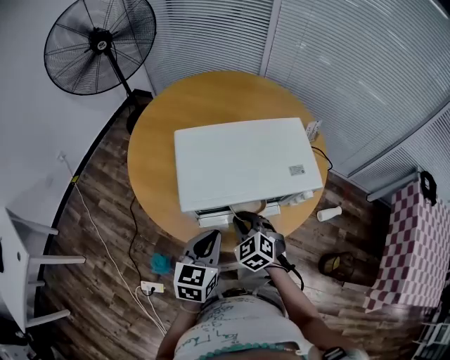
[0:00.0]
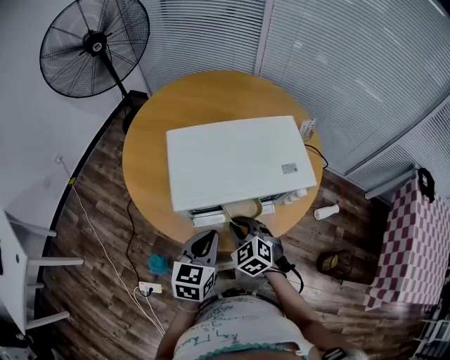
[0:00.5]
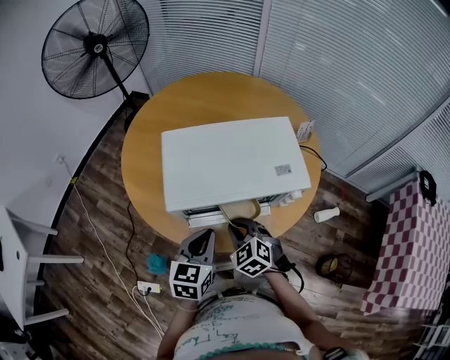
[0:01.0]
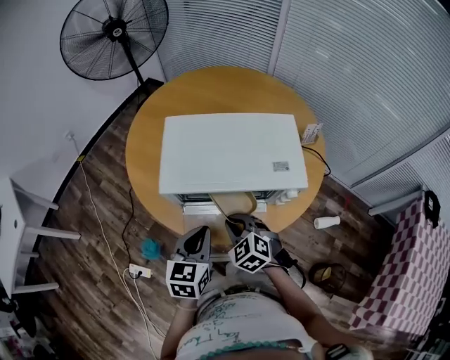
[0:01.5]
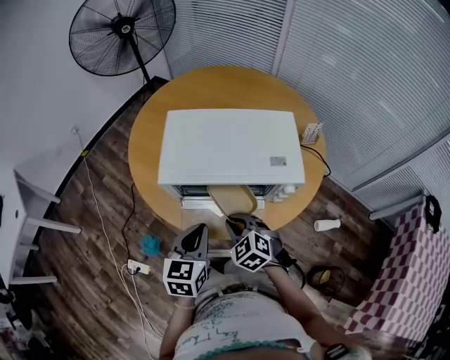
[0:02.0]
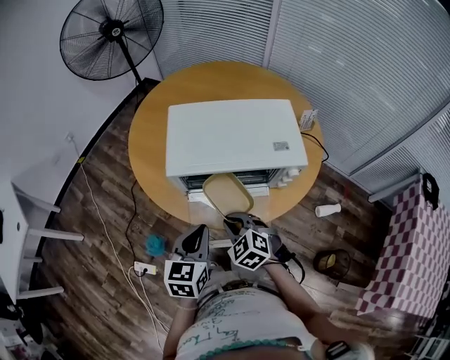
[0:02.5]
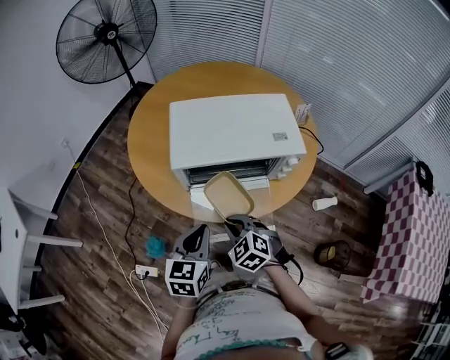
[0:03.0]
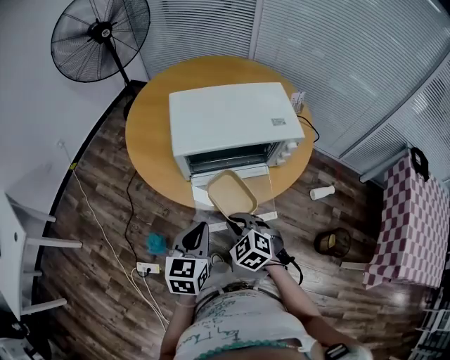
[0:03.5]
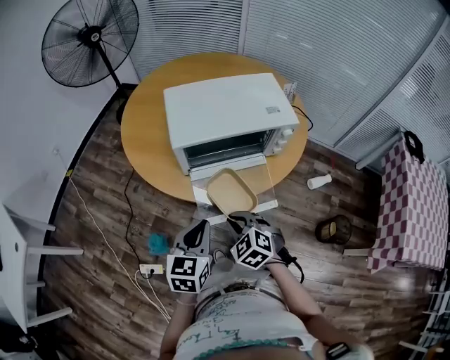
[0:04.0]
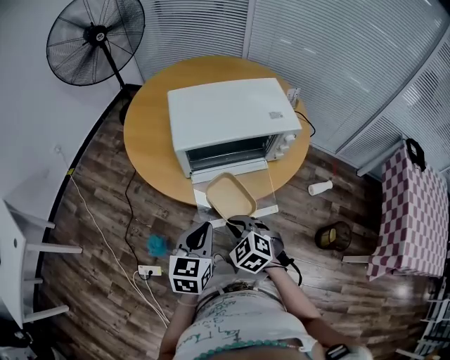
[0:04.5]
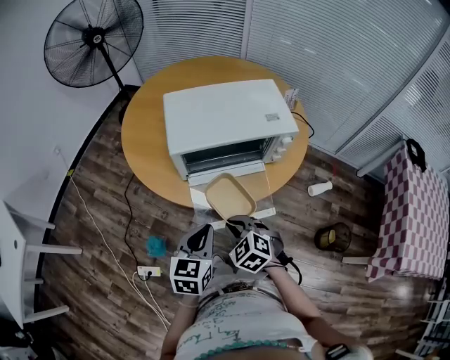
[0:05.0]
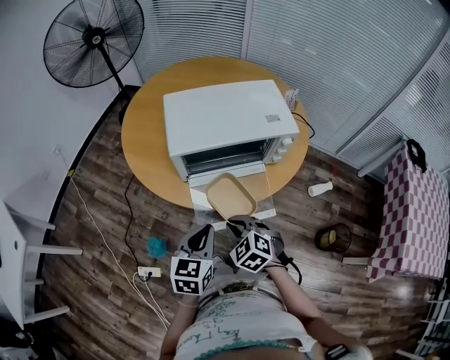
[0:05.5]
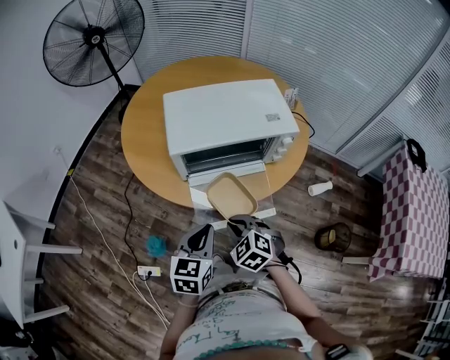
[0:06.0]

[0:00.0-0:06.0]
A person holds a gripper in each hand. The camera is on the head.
0:00.0 to 0:02.0: The right gripper moves backward, roughly 5 cm, while the left gripper ends up about 5 cm from where it was.
0:02.0 to 0:04.0: The two grippers go approximately 15 cm backward and to the left.
0:04.0 to 0:06.0: The grippers stay close to where they were, moving slightly.

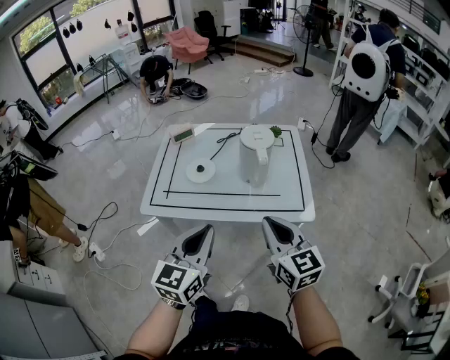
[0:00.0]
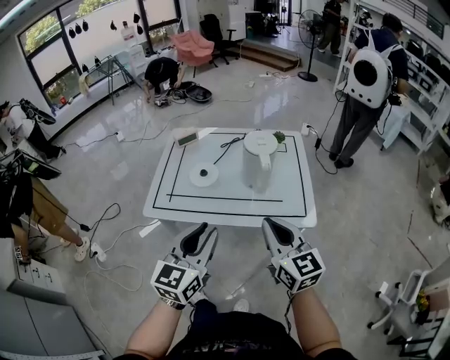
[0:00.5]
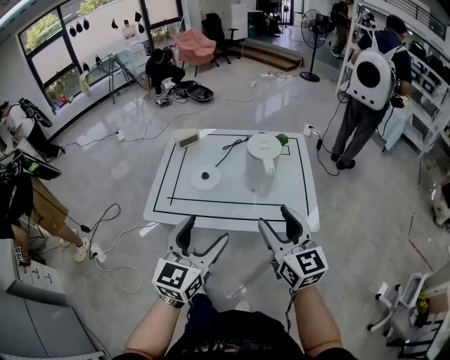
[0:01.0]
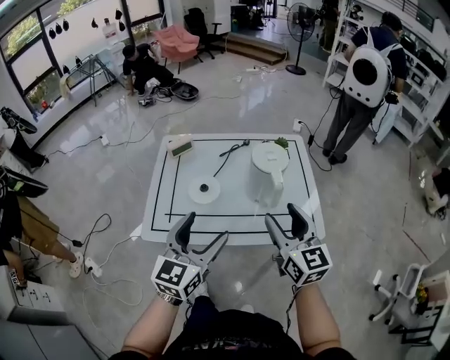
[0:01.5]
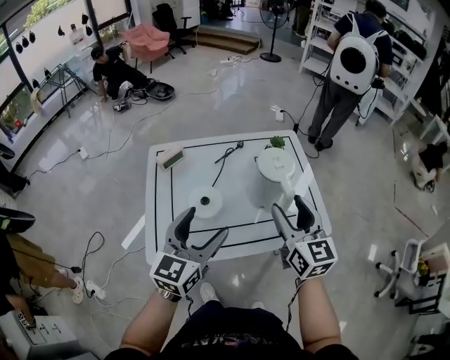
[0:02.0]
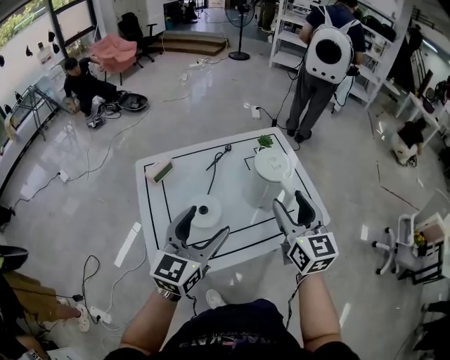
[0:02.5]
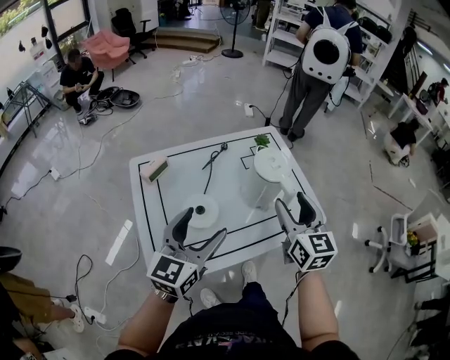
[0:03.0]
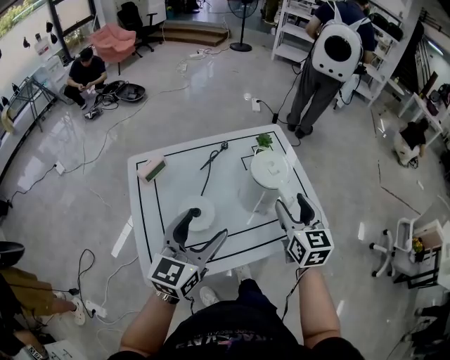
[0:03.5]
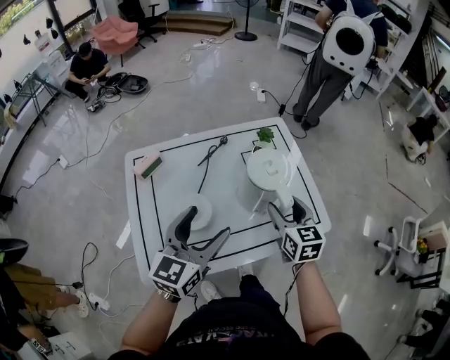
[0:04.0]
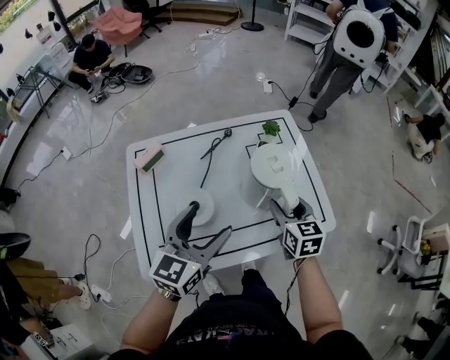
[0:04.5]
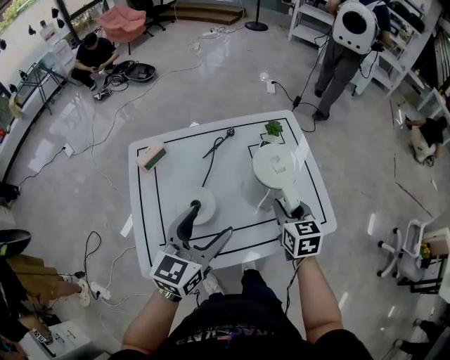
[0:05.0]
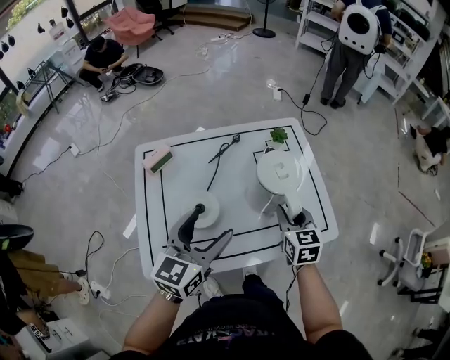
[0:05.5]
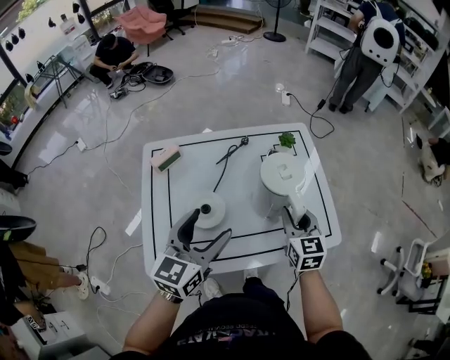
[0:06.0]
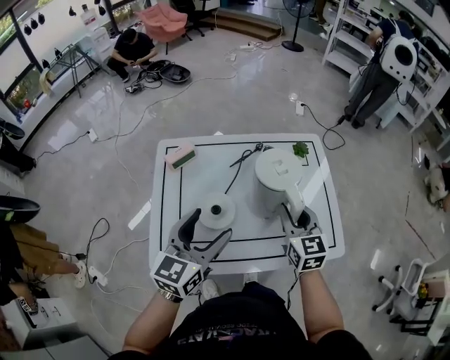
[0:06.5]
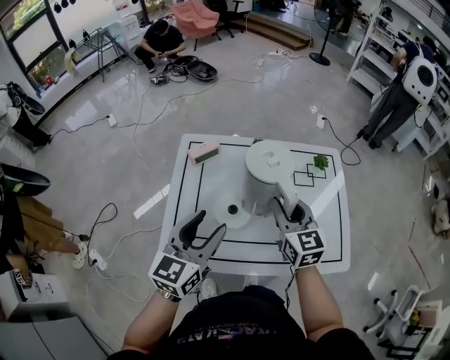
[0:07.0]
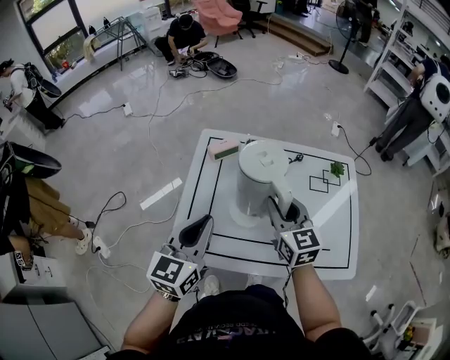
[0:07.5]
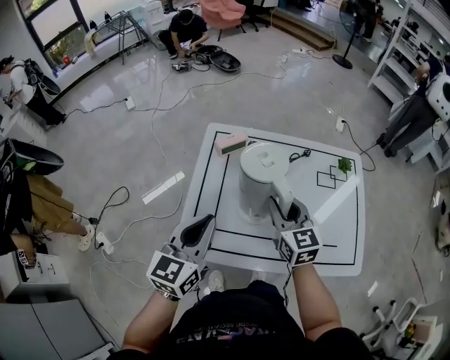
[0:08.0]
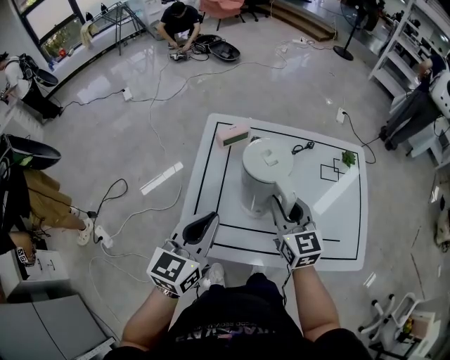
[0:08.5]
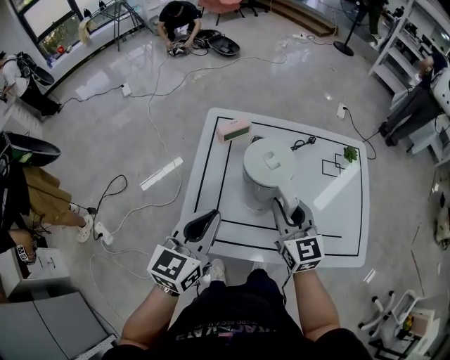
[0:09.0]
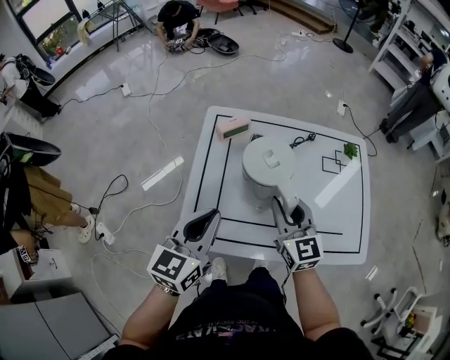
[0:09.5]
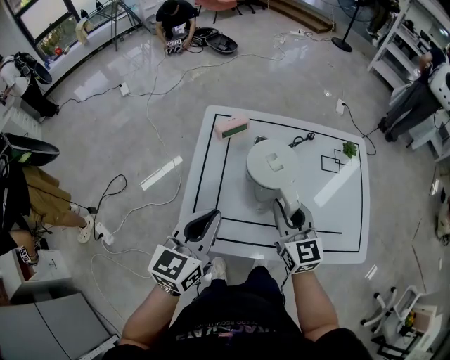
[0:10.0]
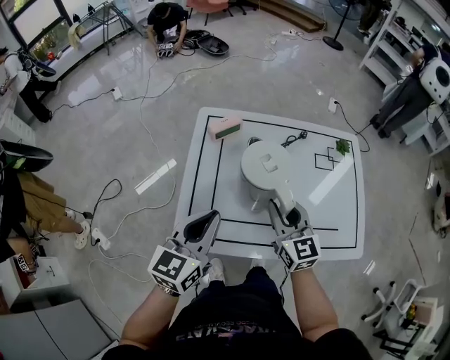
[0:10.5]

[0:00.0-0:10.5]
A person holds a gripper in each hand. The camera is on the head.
0:00.0 to 0:02.0: The left gripper moves forward and to the left, about 25 cm, and opens; the right gripper shifts some 20 cm forward, changes its angle by roughly 20 degrees, and opens.
0:02.0 to 0:04.0: The right gripper goes roughly 15 cm downward and forward, and turns by approximately 20 degrees. The left gripper is displaced forward by some 10 cm.
0:04.0 to 0:06.5: The grippers both shift to the left by approximately 5 cm. The right gripper closes.
0:06.5 to 0:08.5: Both grippers move to the left, some 15 cm. The left gripper closes.
0:08.5 to 0:10.5: The grippers stay close to where they were, moving slightly.

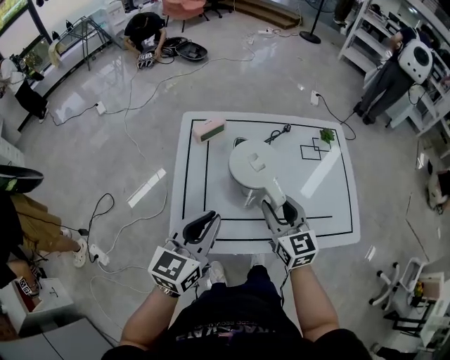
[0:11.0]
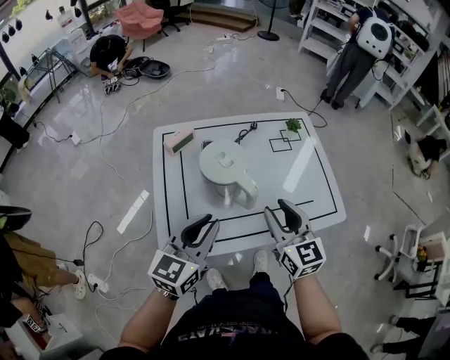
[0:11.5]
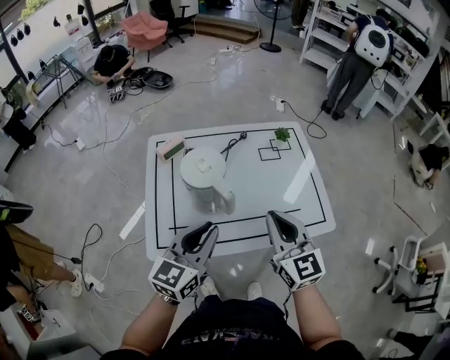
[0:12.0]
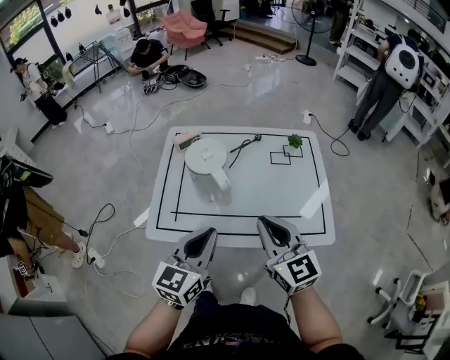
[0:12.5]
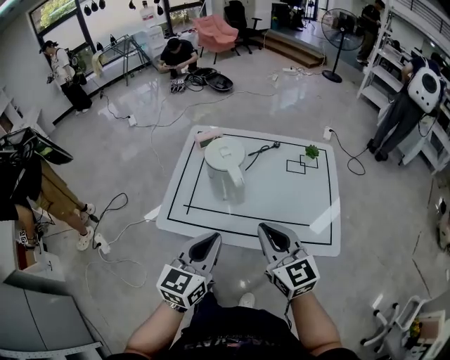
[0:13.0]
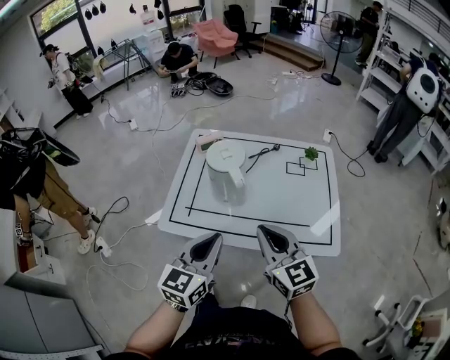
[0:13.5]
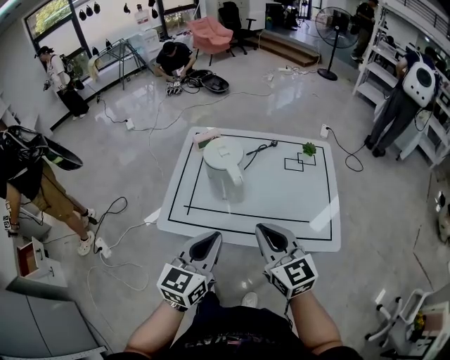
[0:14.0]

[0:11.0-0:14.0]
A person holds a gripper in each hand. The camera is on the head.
0:11.0 to 0:12.5: The right gripper is displaced to the right, backward and upward by approximately 20 cm, and closes. The left gripper travels to the right and backward by about 15 cm.
0:12.5 to 0:14.0: The grippers move only a little.

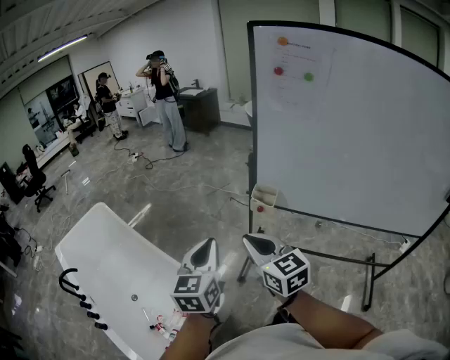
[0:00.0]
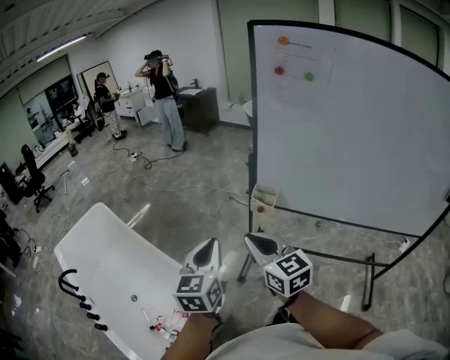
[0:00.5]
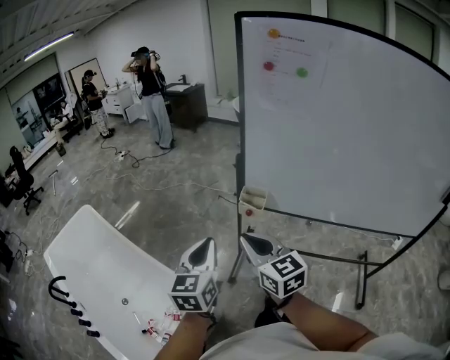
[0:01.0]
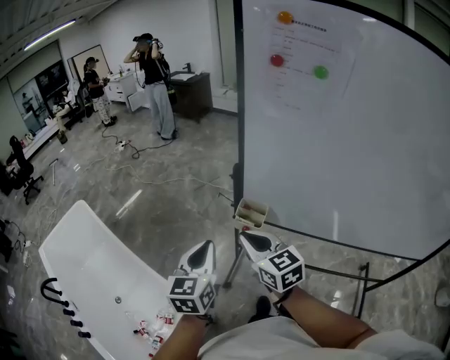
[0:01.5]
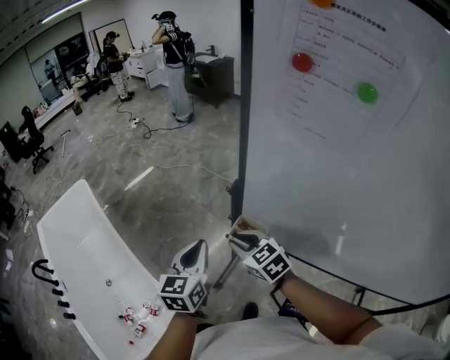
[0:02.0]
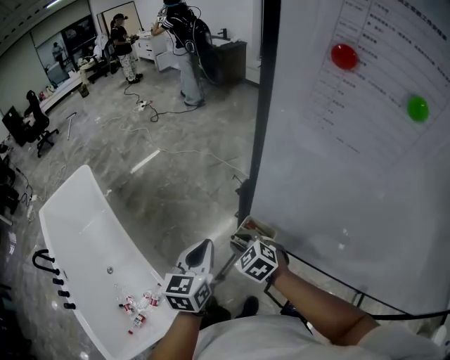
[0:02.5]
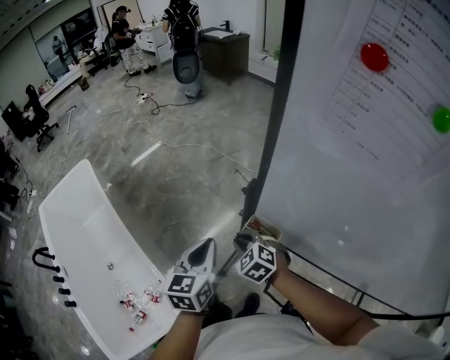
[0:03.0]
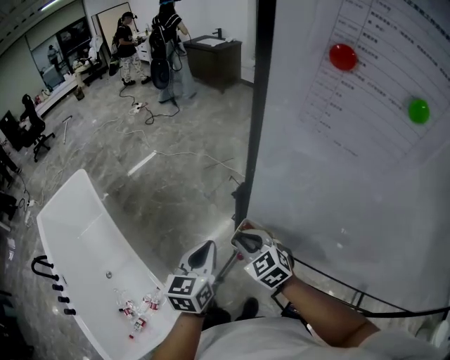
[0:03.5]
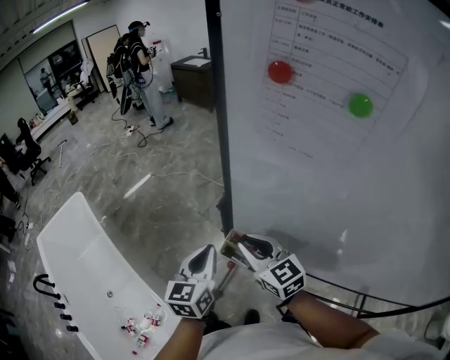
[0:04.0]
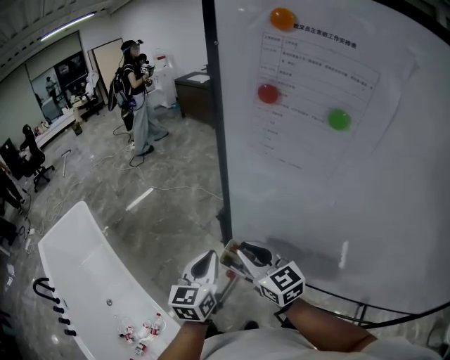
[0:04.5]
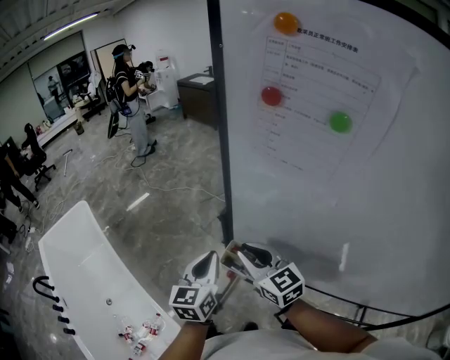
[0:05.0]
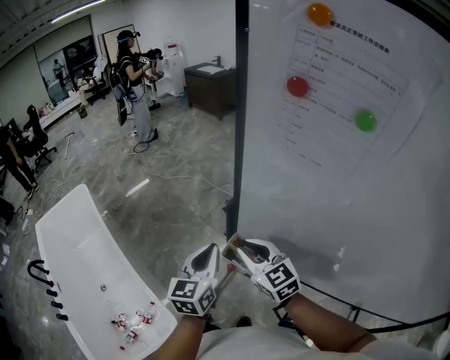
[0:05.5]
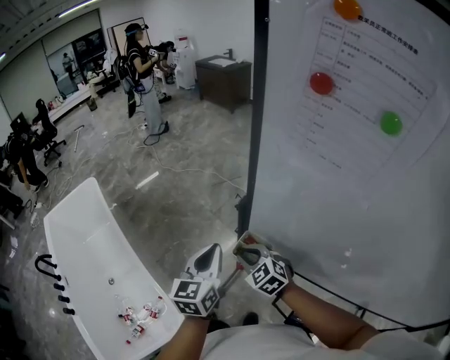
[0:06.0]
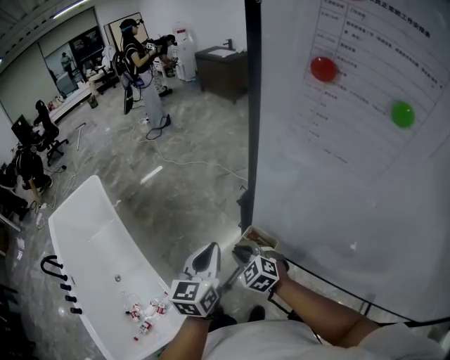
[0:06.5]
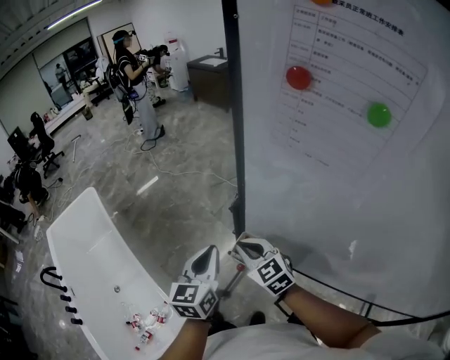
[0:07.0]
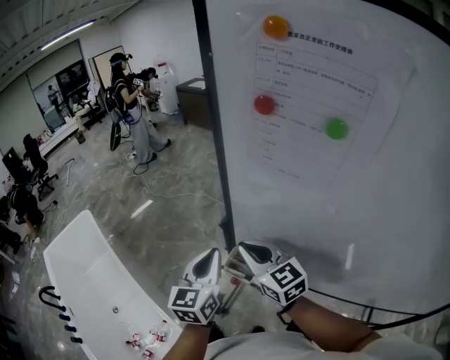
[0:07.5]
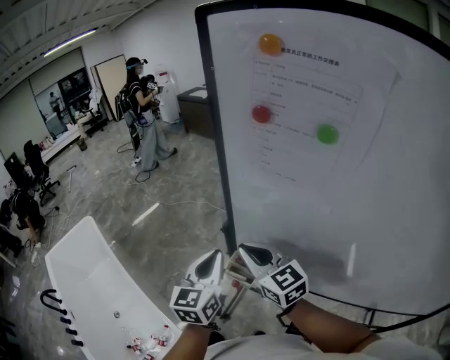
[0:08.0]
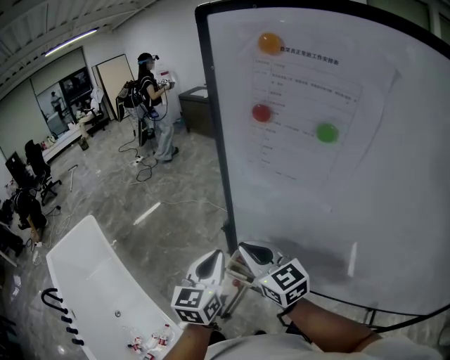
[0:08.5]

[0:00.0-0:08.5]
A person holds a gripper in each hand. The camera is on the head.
0:00.0 to 0:02.0: The right gripper is displaced forward, to the right and downward by approximately 40 cm, and turns by approximately 30 degrees, while the left gripper is displaced forward and to the right by approximately 35 cm.
0:02.0 to 0:04.0: The right gripper goes approximately 10 cm upward and to the right, and changes its angle by about 20 degrees, while the left gripper is displaced to the right by roughly 5 cm.
0:04.0 to 0:06.5: The right gripper heads downward and to the left, covering about 15 cm, and changes its angle by about 40 degrees.
0:06.5 to 0:08.5: The right gripper is displaced upward by some 25 cm, and tips its fingers upward by approximately 30 degrees; the left gripper moves upward and to the right, about 10 cm.
